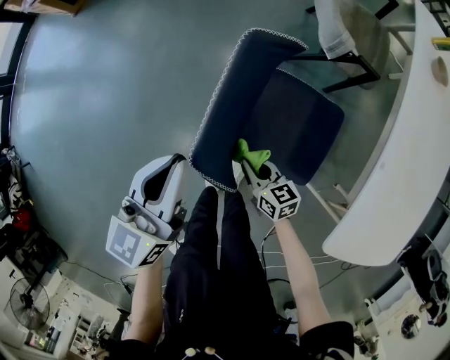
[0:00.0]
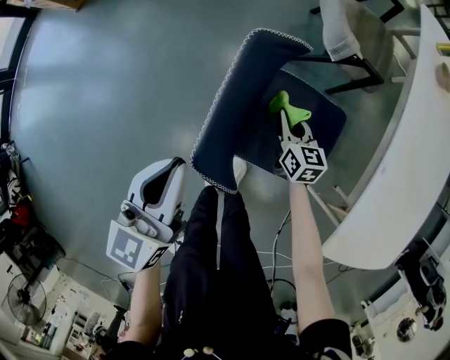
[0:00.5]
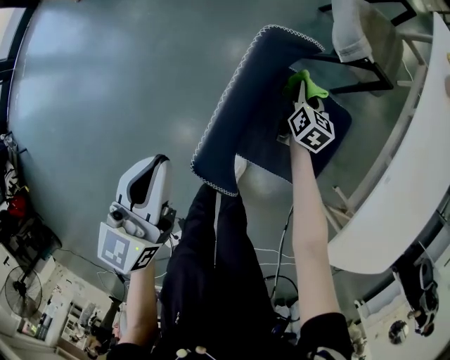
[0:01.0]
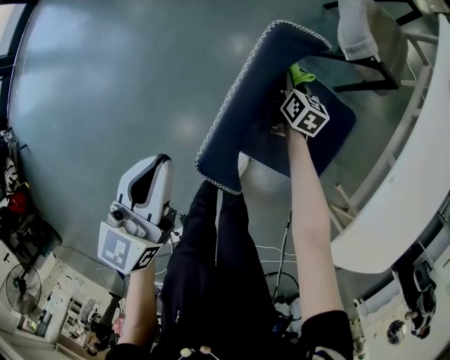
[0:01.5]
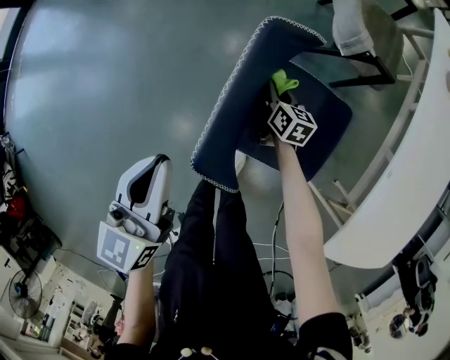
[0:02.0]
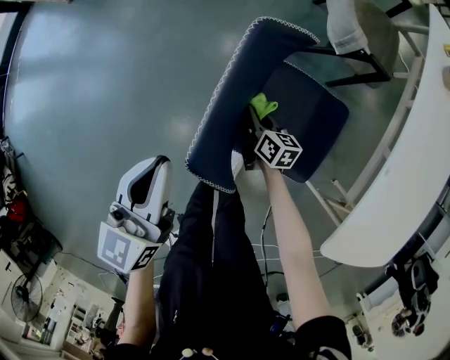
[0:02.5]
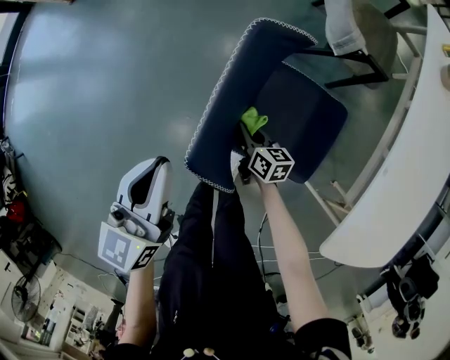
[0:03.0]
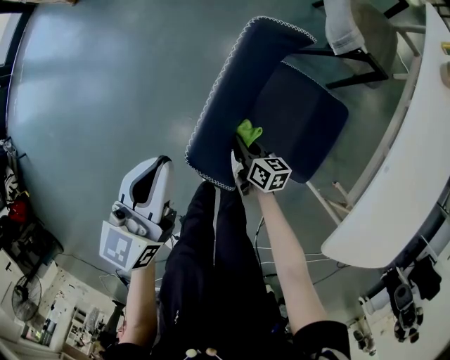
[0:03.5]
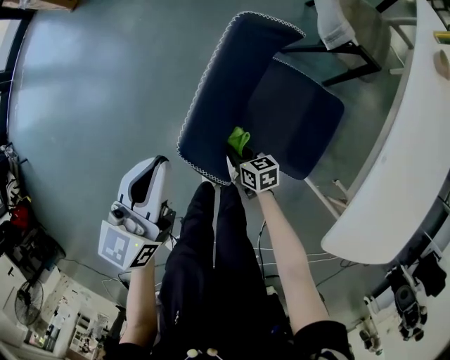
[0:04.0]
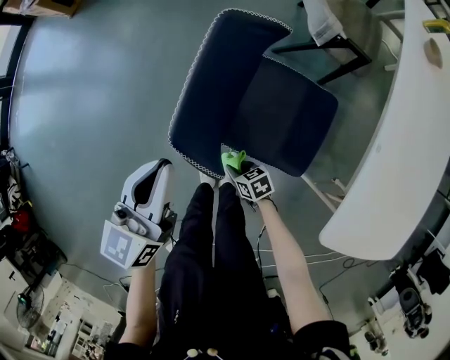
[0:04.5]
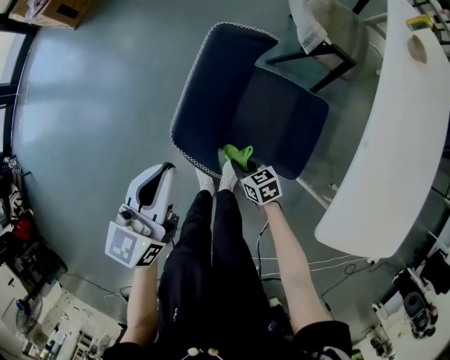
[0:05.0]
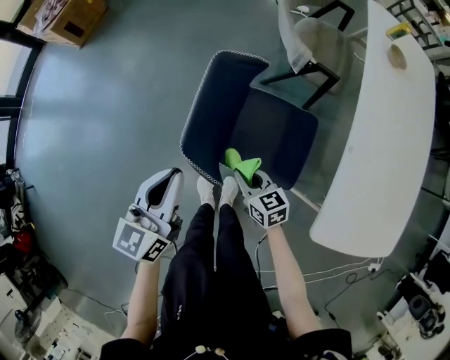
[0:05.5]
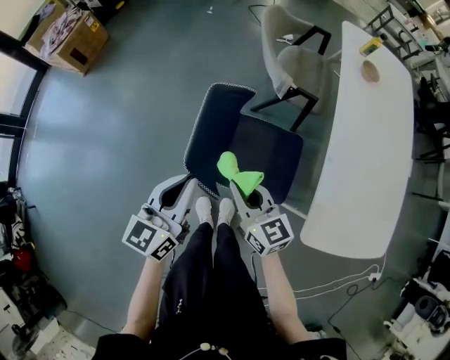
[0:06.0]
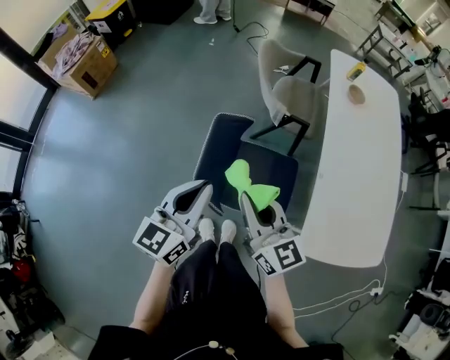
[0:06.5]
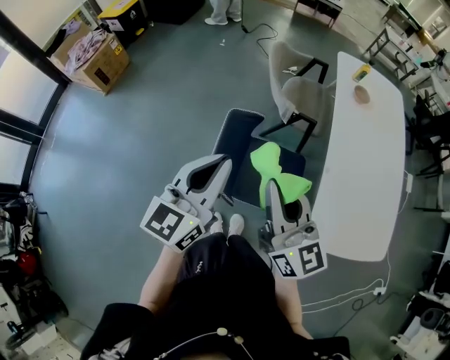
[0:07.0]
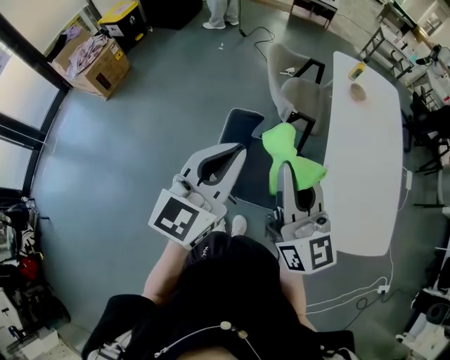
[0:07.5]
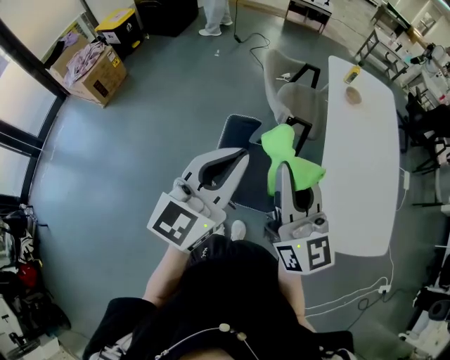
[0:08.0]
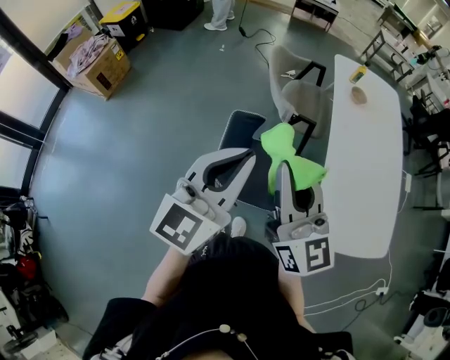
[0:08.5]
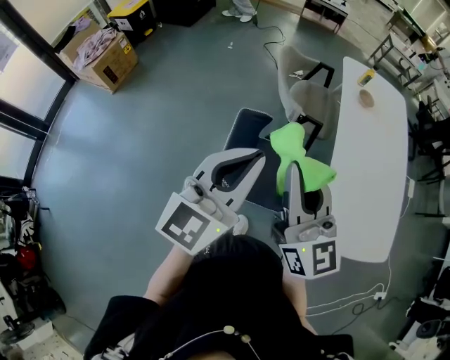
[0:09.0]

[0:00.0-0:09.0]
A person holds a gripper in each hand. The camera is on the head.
0:00.0 to 0:02.0: The right gripper moves forward, some 20 cm, and changes its angle by approximately 20 degrees.
0:02.0 to 0:04.5: The right gripper shifts by about 30 cm, and changes its angle by some 50 degrees. Meanwhile the left gripper moves approximately 5 cm.
0:04.5 to 0:07.0: The left gripper shifts roughly 25 cm upward, and swivels about 20 degrees. The right gripper goes about 60 cm upward, and tilts its fingers about 50 degrees upward.
0:07.0 to 0:09.0: The grippers both shift upward by roughly 5 cm.

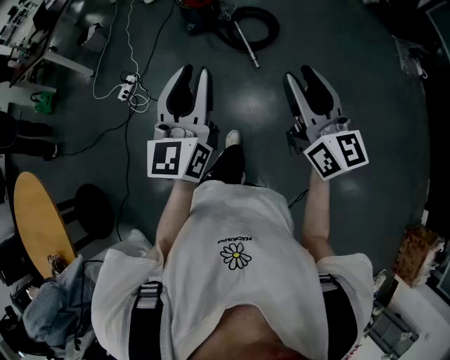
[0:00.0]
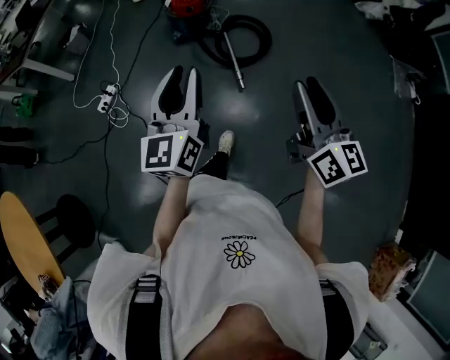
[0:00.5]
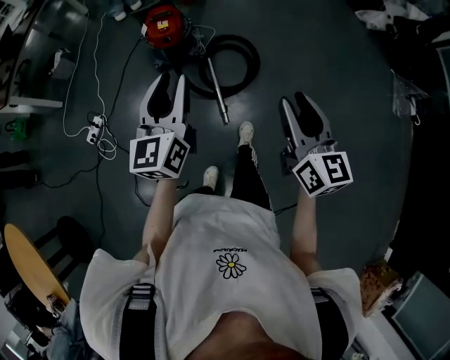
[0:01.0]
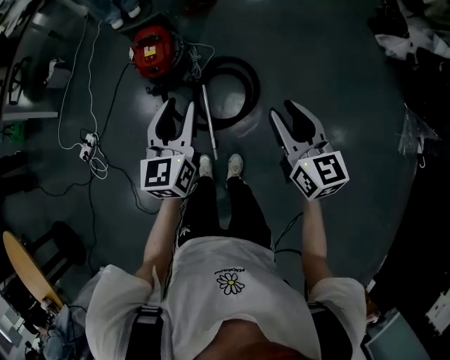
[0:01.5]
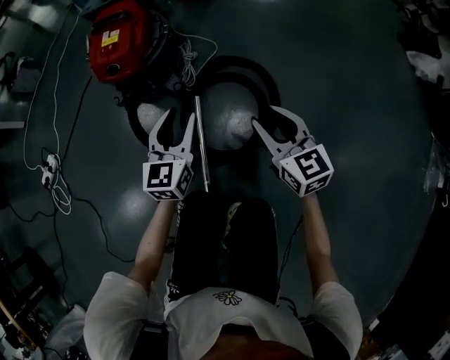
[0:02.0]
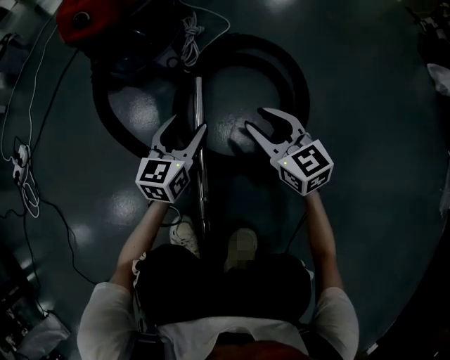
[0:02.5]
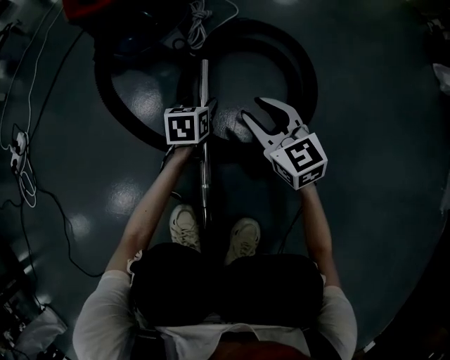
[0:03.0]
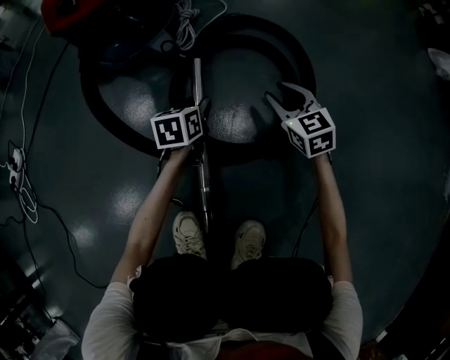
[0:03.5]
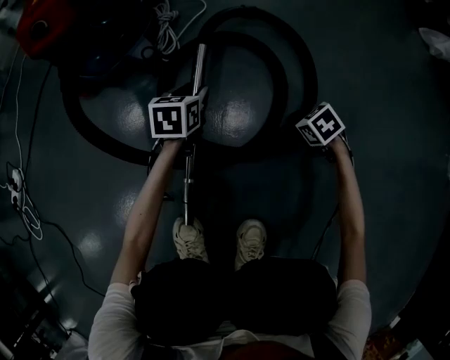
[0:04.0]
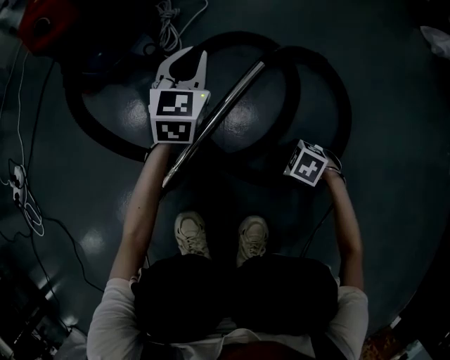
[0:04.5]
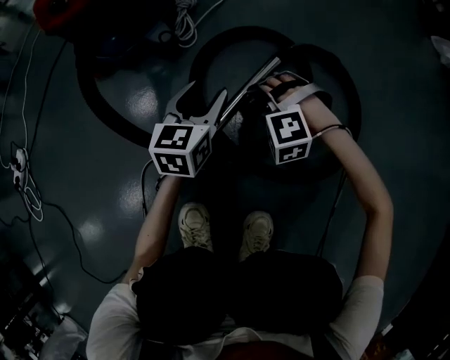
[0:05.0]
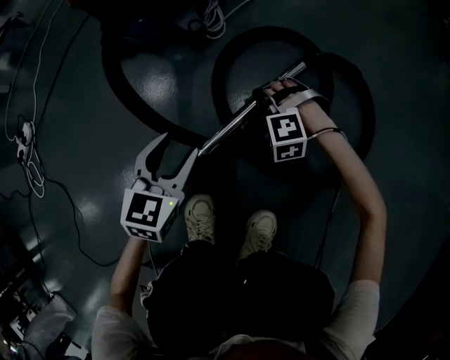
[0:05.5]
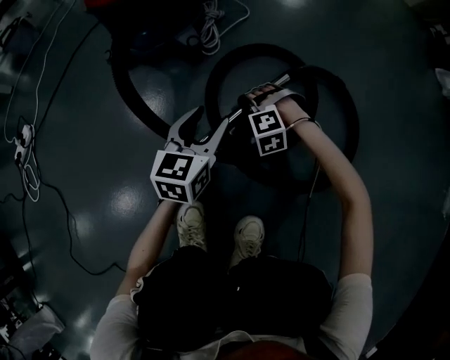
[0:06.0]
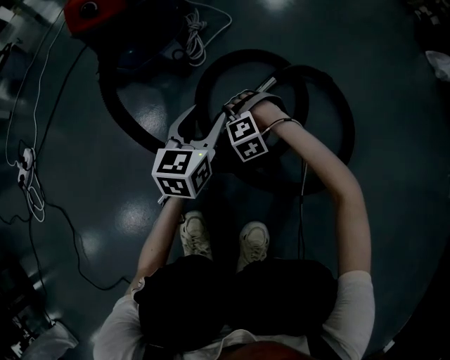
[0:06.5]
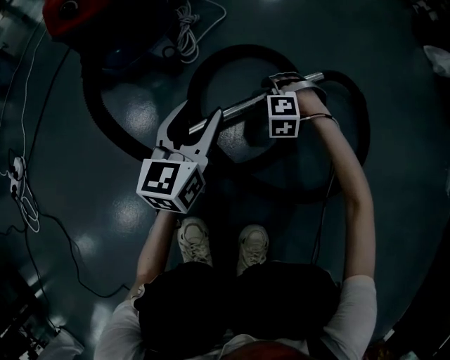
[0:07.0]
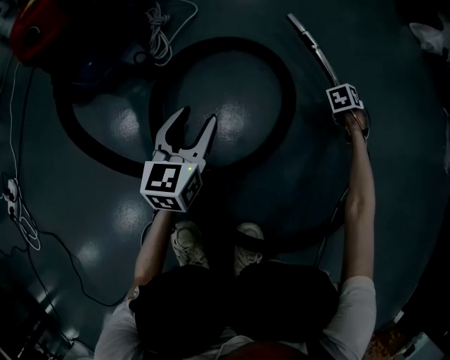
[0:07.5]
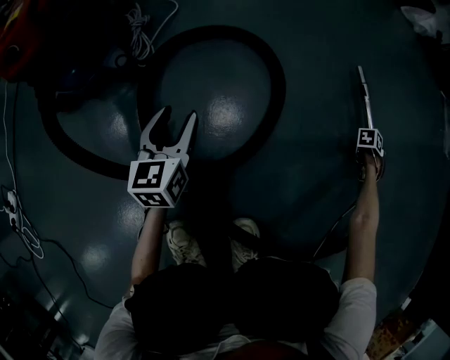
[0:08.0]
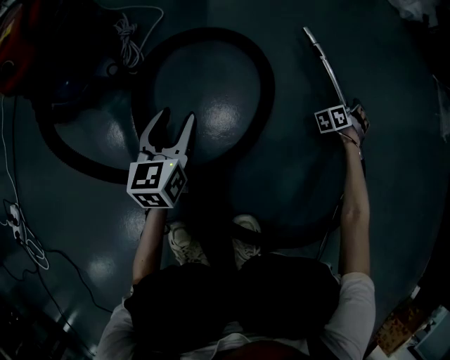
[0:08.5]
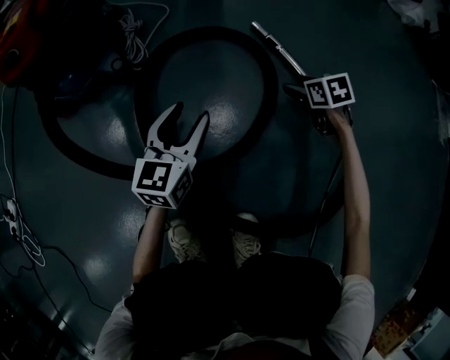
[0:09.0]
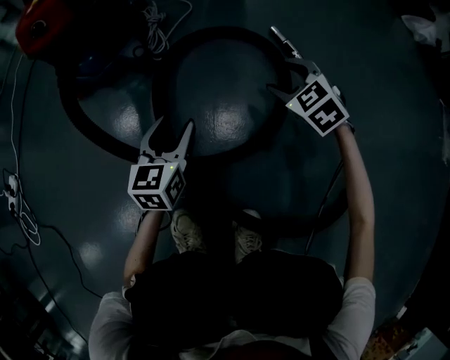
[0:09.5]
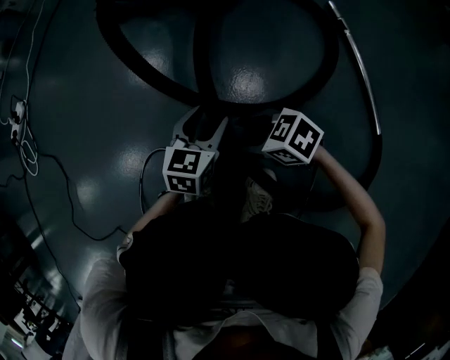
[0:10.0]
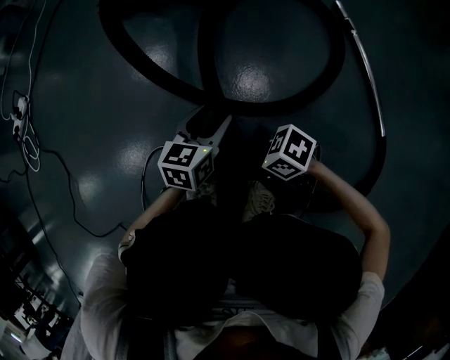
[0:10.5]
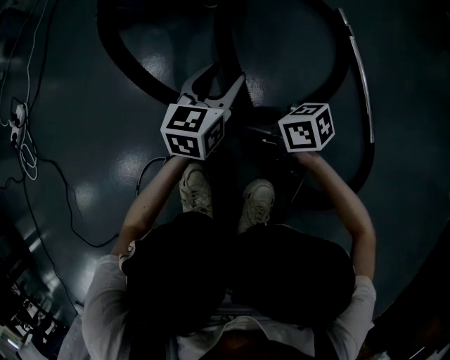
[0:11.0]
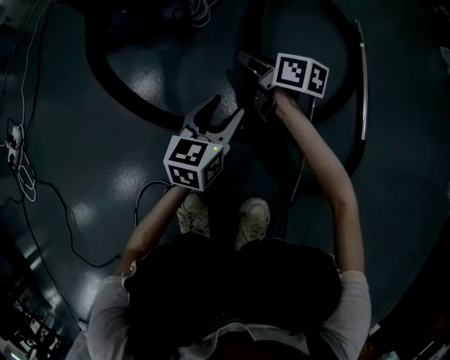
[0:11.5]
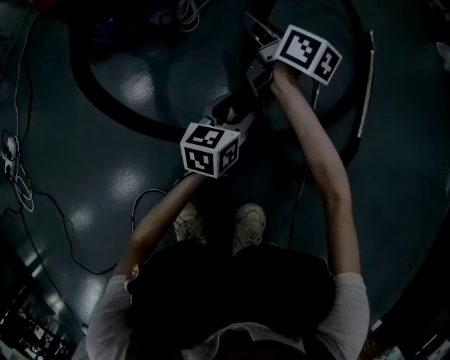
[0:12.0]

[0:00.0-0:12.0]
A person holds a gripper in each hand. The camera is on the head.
0:00.0 to 0:02.0: Both grippers are carried forward, roughly 90 cm. Both grippers travel together downward, roughly 60 cm. The right gripper swivels roughly 40 degrees; the left gripper turns by approximately 20 degrees.
0:02.0 to 0:04.0: Both grippers travel together downward, approximately 40 cm. The right gripper angles its fingers downward, by approximately 50 degrees, and closes up. The left gripper changes its angle by approximately 30 degrees.
0:04.0 to 0:06.0: The right gripper goes upward and returns, some 5 cm each way, twists some 80 degrees counterclockwise, seen from behind, and opens, while the left gripper changes place by approximately 20 cm, rotates about 20 degrees, and closes and opens again.
0:06.0 to 0:08.0: The left gripper changes place by roughly 10 cm. The right gripper shifts by roughly 70 cm, and rotates around the line of its fingers by approximately 120 degrees, clockwise from behind.
0:08.0 to 0:10.0: The left gripper ends up about 20 cm from where it was; the right gripper changes place by approximately 70 cm, swivels some 120 degrees, and opens up.
0:10.0 to 0:12.0: The left gripper changes place by some 15 cm, while the right gripper changes place by roughly 40 cm, and points its fingers roughly 30 degrees further upward.

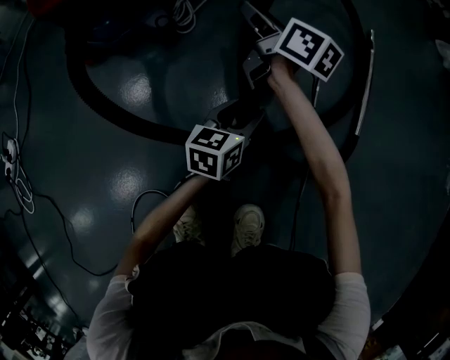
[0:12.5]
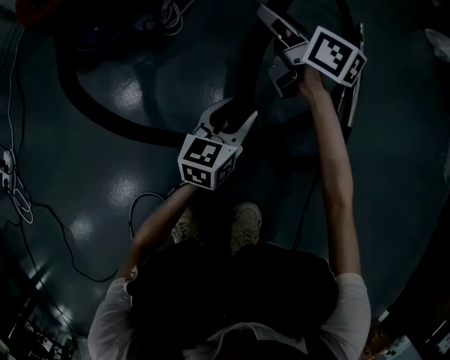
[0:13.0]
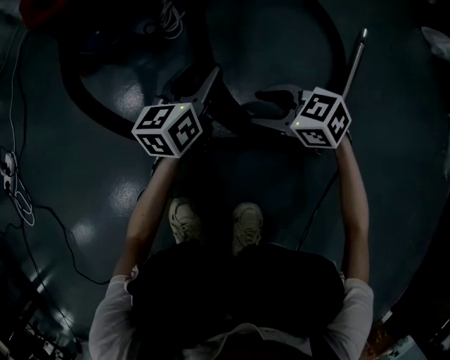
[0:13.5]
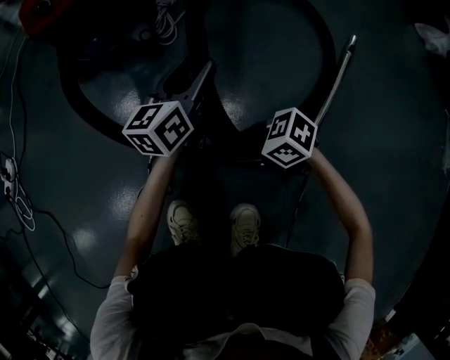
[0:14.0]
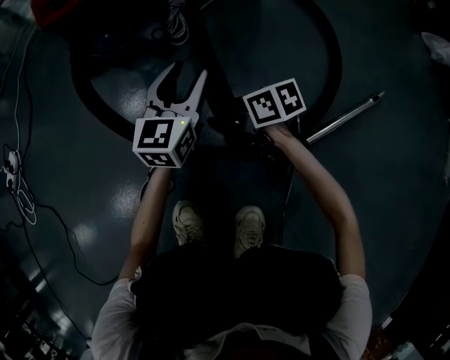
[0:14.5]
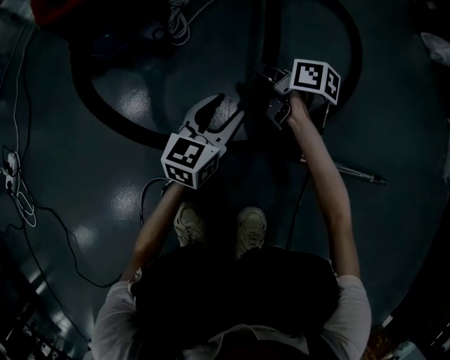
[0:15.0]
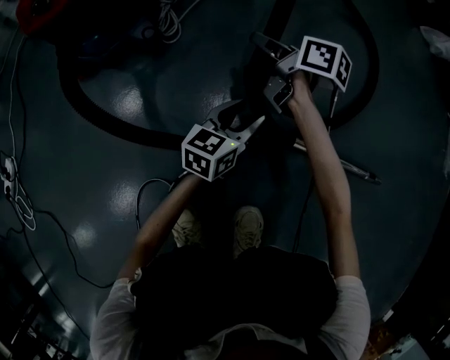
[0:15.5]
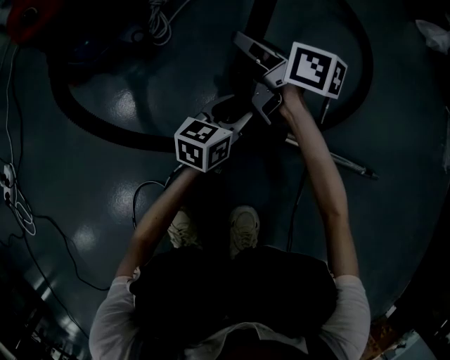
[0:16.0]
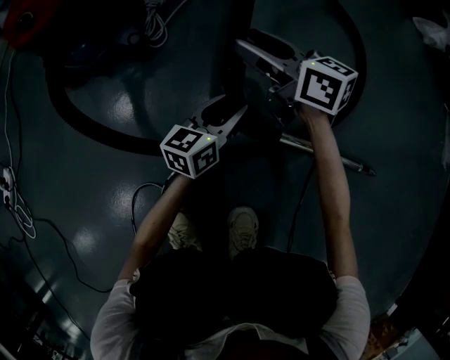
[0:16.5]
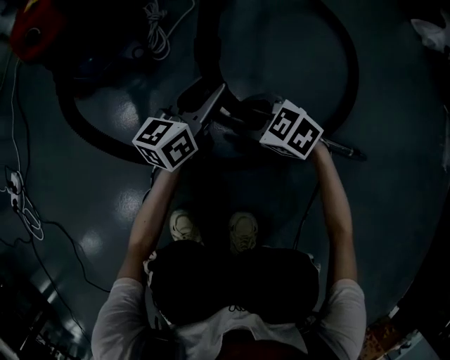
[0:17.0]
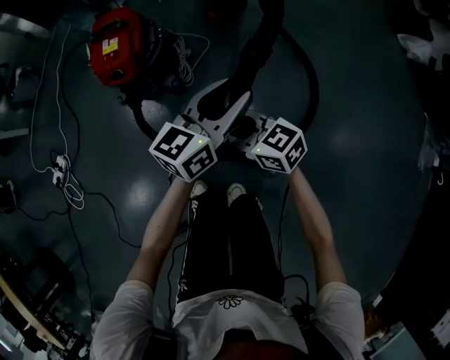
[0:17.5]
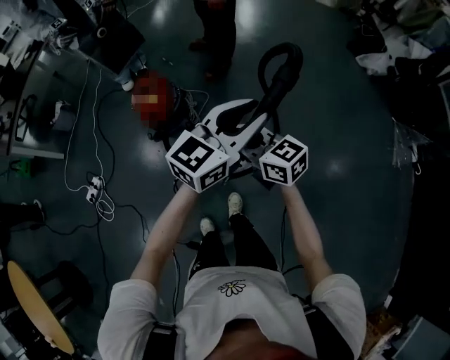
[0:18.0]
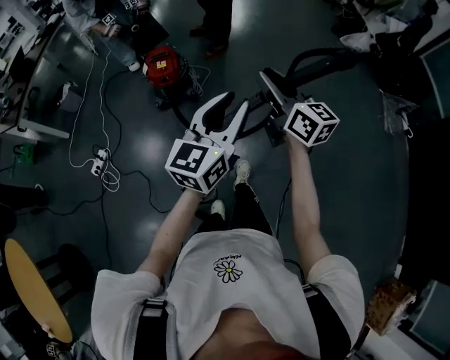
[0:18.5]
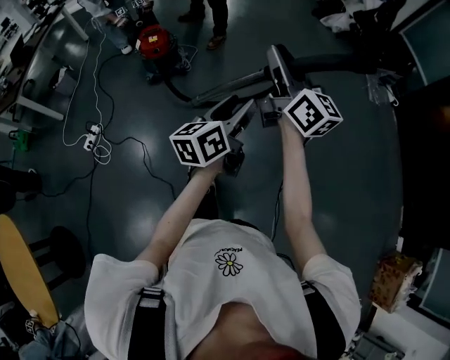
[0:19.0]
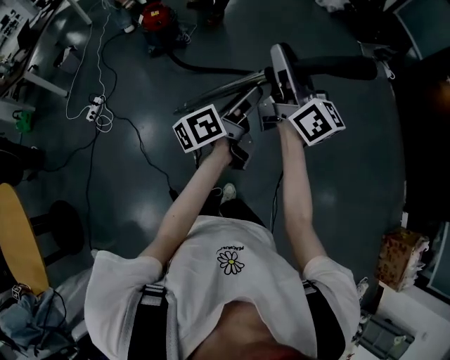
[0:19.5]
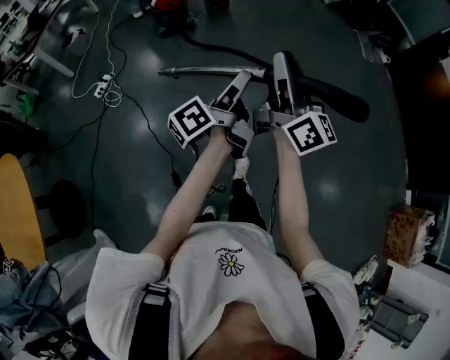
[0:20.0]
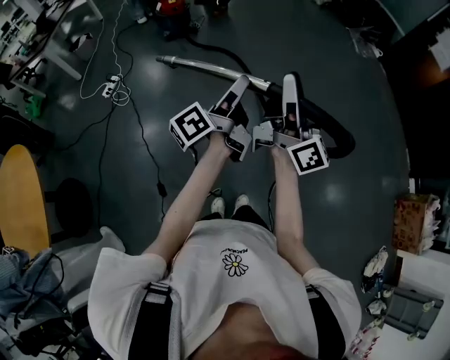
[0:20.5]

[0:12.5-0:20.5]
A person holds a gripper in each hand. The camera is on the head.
0:12.5 to 0:14.5: The left gripper ends up about 20 cm from where it was, and changes its angle by some 30 degrees, while the right gripper shifts by roughly 25 cm, and changes its angle by roughly 50 degrees.
0:14.5 to 0:16.5: The left gripper moves approximately 15 cm, and swivels about 30 degrees, while the right gripper heads upward, covering about 15 cm, and changes its angle by approximately 40 degrees.
0:16.5 to 0:18.5: The right gripper moves upward and backward, roughly 90 cm, swivels approximately 30 degrees, and closes, while the left gripper heads upward, covering roughly 1 m, and swivels roughly 20 degrees.
0:18.5 to 0:20.5: The pair of grippers is taken backward, some 90 cm. The right gripper tips its fingers upward by approximately 30 degrees. The left gripper twists approximately 60 degrees counterclockwise, seen from behind, and opens its fingers.
